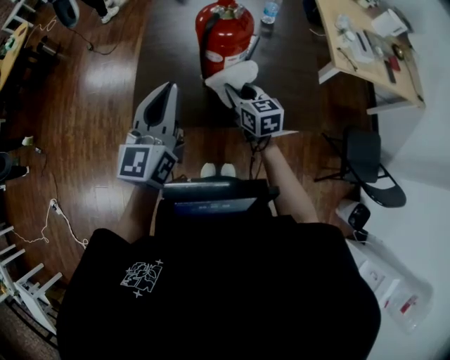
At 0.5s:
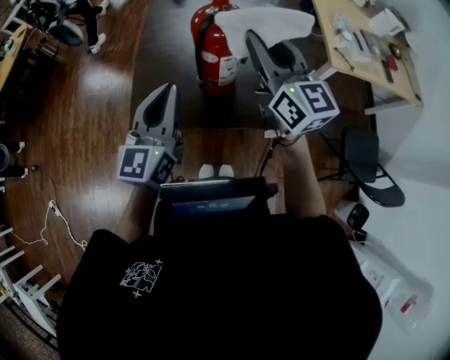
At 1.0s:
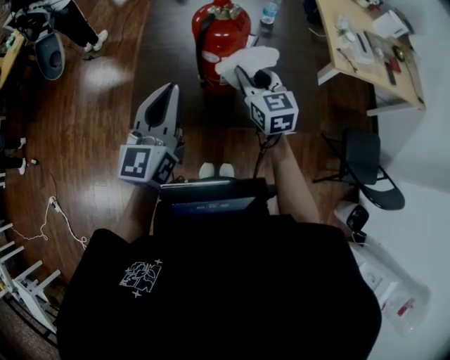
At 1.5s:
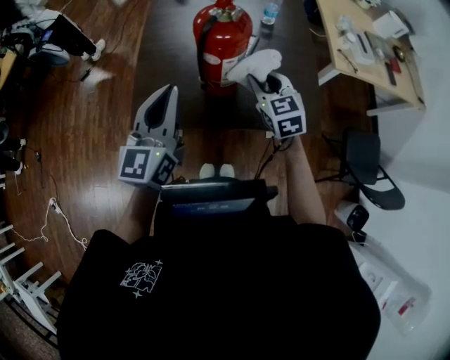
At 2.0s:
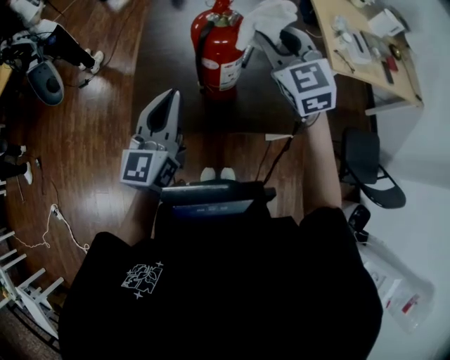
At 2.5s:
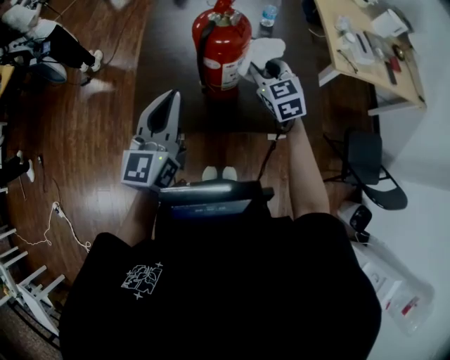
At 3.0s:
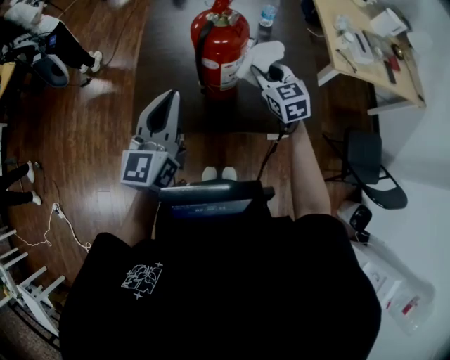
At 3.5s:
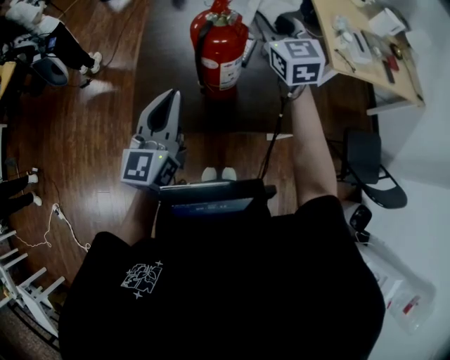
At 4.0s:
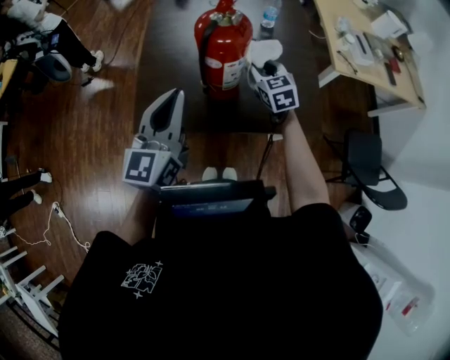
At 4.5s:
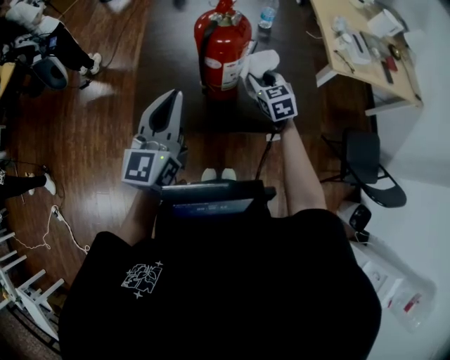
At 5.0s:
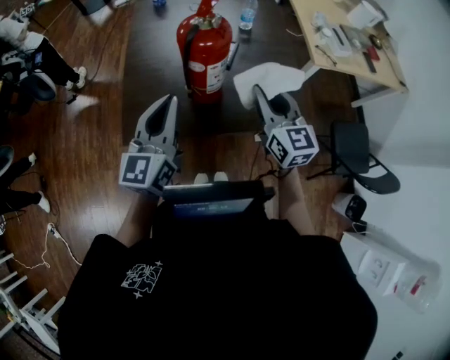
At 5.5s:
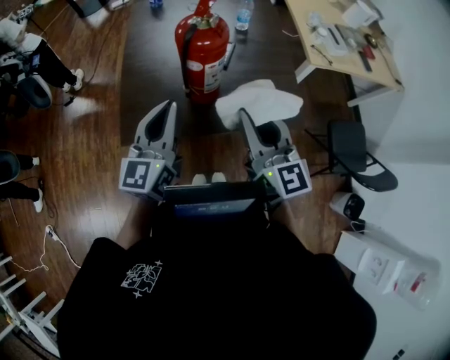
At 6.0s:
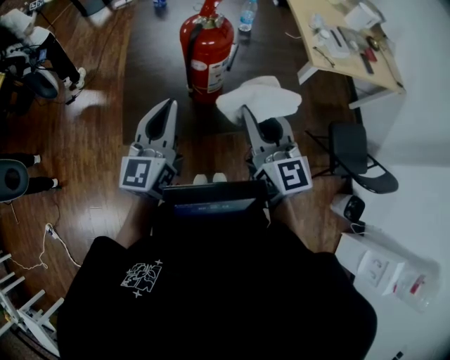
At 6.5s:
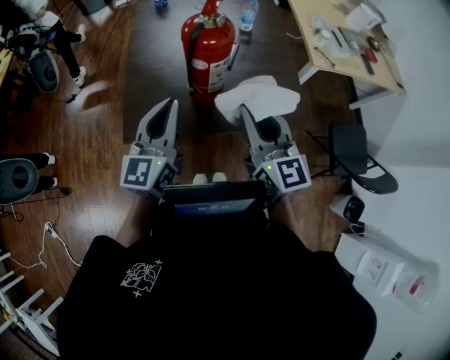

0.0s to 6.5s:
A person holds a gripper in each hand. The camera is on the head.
0.0s to 2.0s: The right gripper goes up and down, some 25 cm each way, reversing 2 times, and changes its angle by approximately 40 degrees.
2.0s to 4.5s: The right gripper swings up and down, roughly 25 cm each way, with 2 reversals, and changes its angle by about 30 degrees.
4.5s to 6.5s: The right gripper travels upward and backward by about 30 cm, and tilts its fingers approximately 30 degrees upward.

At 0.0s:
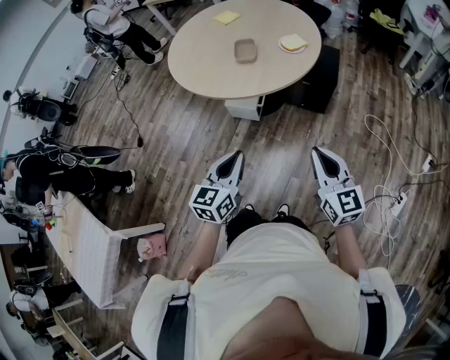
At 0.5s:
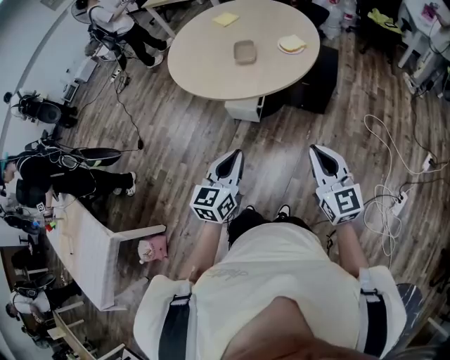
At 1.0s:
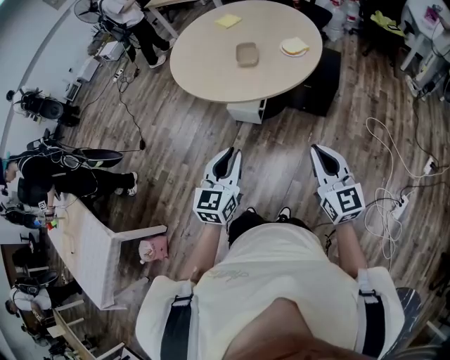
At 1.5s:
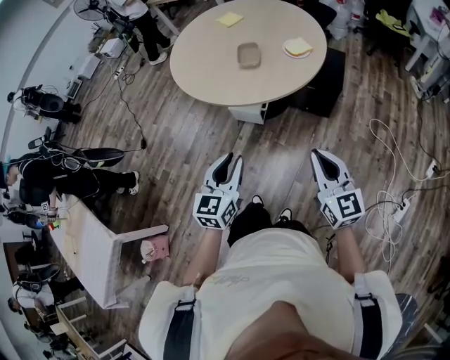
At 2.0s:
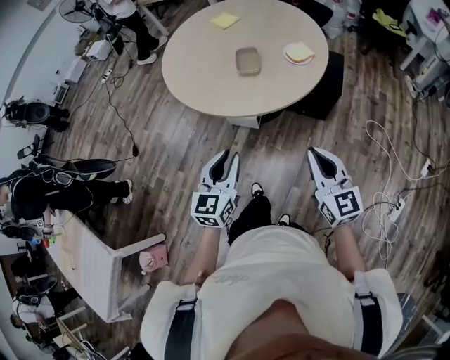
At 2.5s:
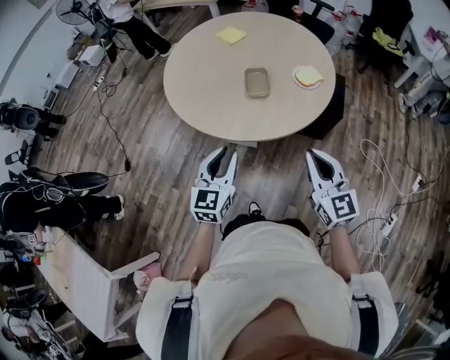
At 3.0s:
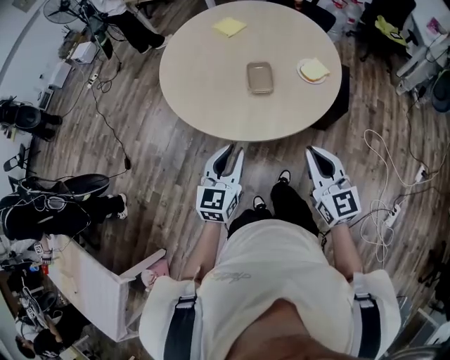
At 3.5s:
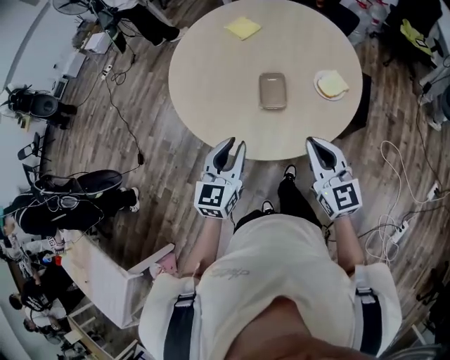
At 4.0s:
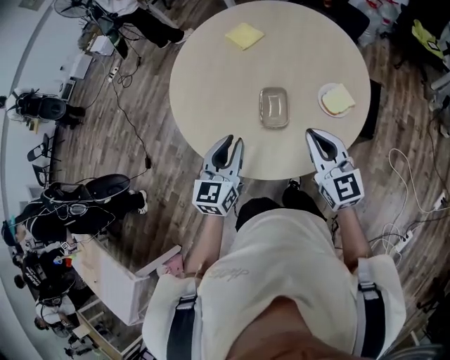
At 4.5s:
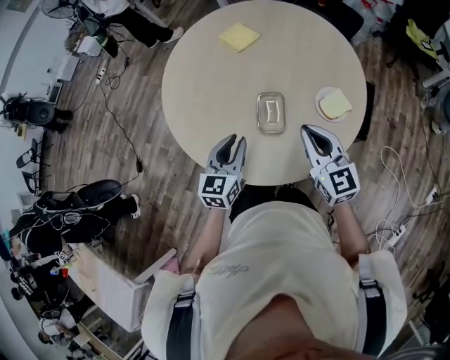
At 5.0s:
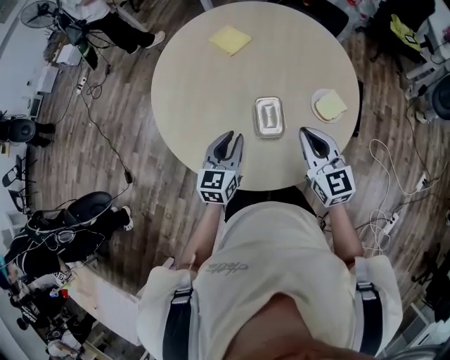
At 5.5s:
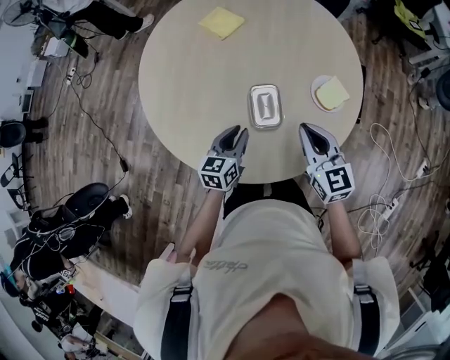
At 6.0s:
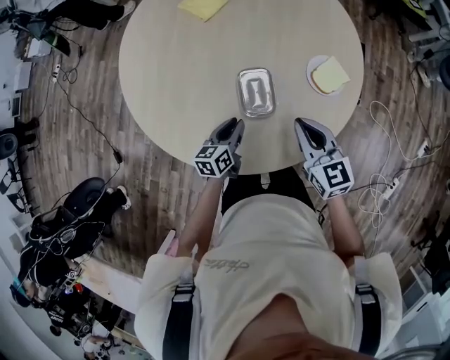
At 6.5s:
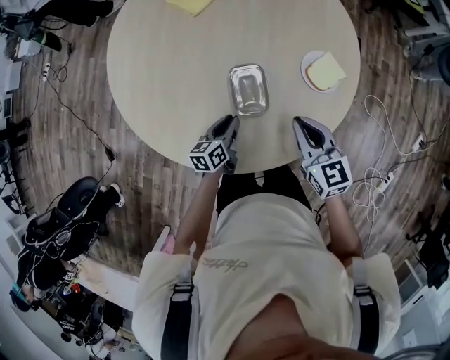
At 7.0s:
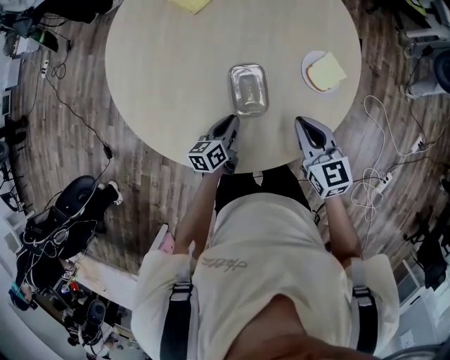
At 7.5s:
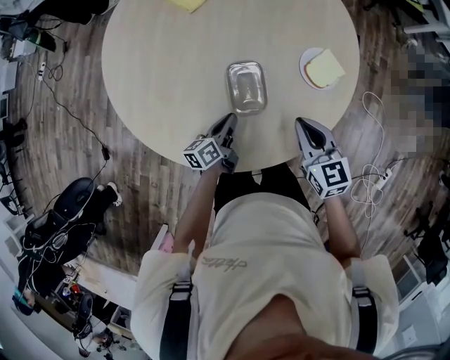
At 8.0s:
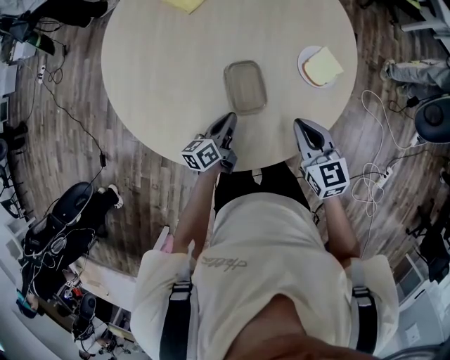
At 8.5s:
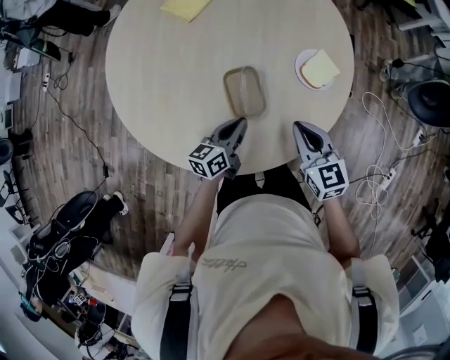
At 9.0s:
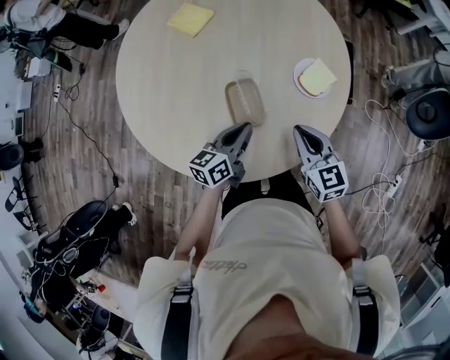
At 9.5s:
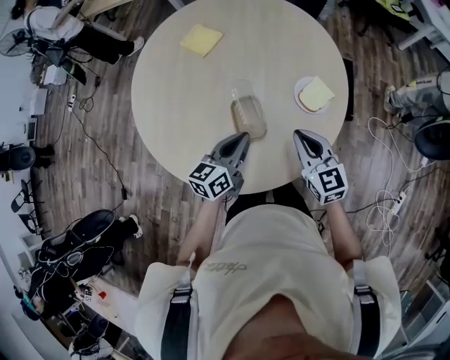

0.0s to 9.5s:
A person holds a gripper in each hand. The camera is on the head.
0.0s to 2.0s: The two grippers go roughly 10 cm forward.
2.0s to 4.0s: Both grippers move forward, about 35 cm.
4.0s to 5.5s: The right gripper shifts roughly 10 cm forward and downward. Meanwhile the left gripper is displaced downward and forward by about 20 cm, and rotates approximately 20 degrees.
5.5s to 7.5s: The right gripper moves downward, about 10 cm. Meanwhile the left gripper shifts about 10 cm downward, and rotates roughly 30 degrees.
7.5s to 9.5s: The right gripper goes approximately 5 cm upward; the left gripper moves upward, about 20 cm, and turns by about 30 degrees.

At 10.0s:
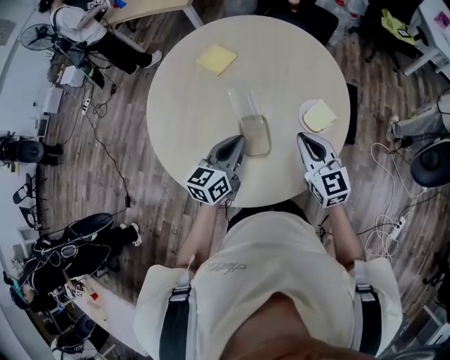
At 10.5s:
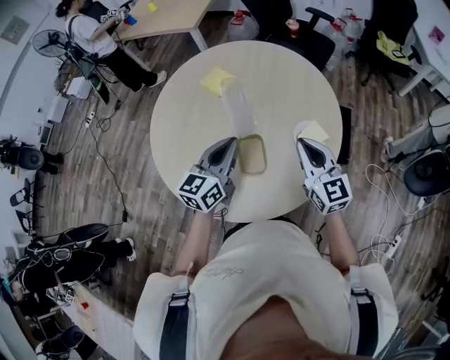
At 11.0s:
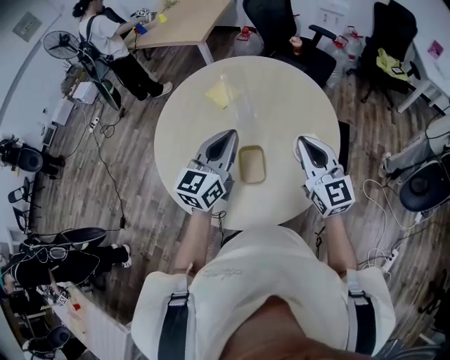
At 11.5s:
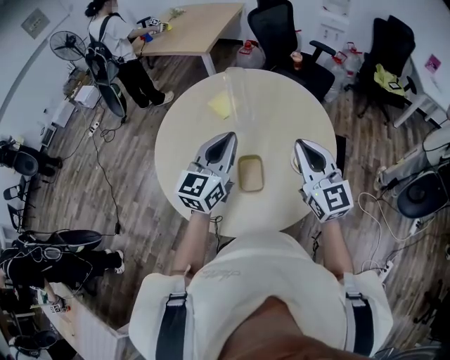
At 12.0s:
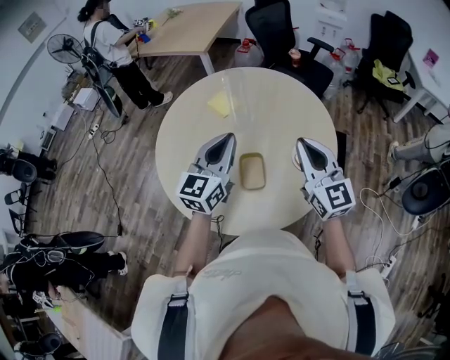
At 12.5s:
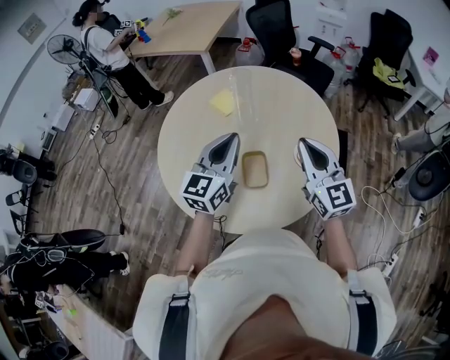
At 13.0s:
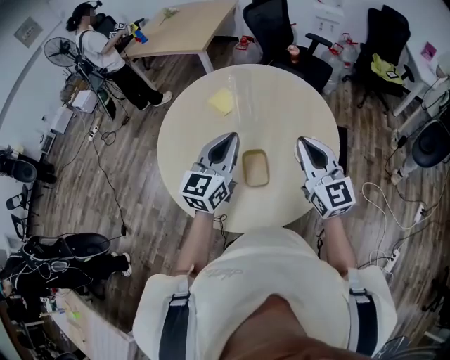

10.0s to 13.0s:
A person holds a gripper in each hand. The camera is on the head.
10.0s to 11.5s: Both grippers move upward, roughly 15 cm. The left gripper changes its angle by some 30 degrees.
11.5s to 13.0s: The grippers make only small movements.

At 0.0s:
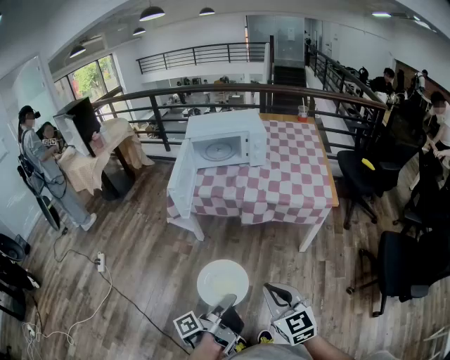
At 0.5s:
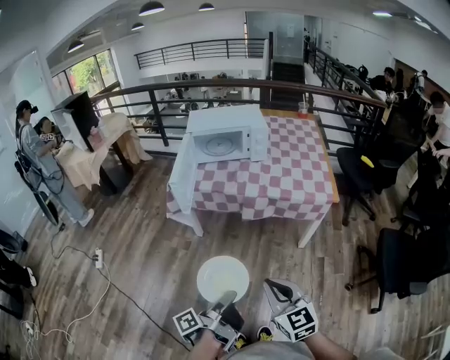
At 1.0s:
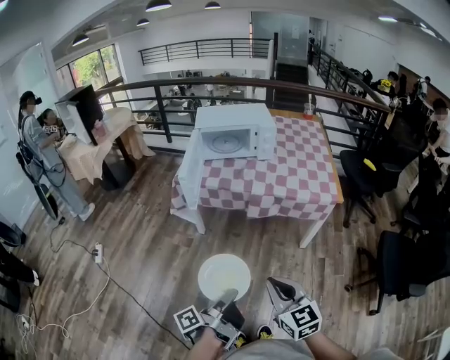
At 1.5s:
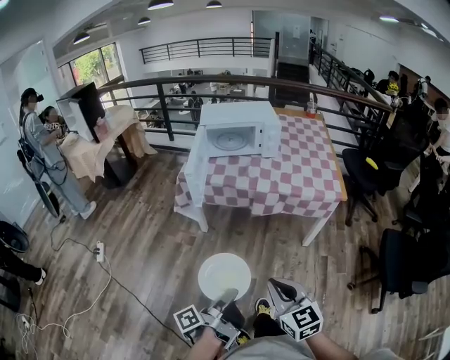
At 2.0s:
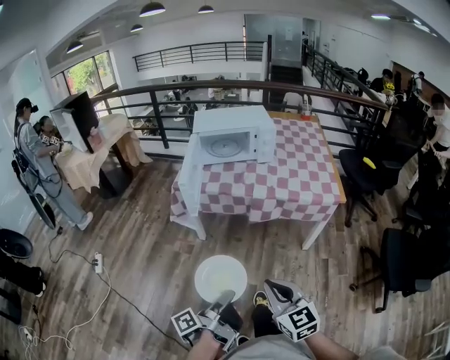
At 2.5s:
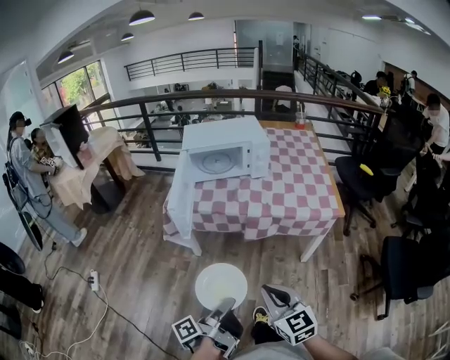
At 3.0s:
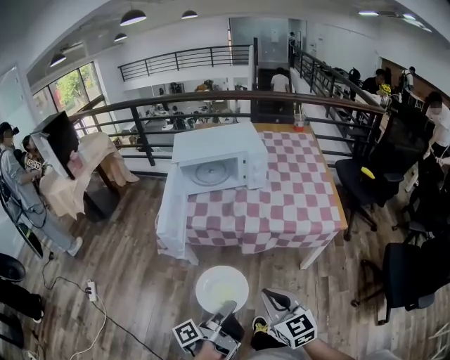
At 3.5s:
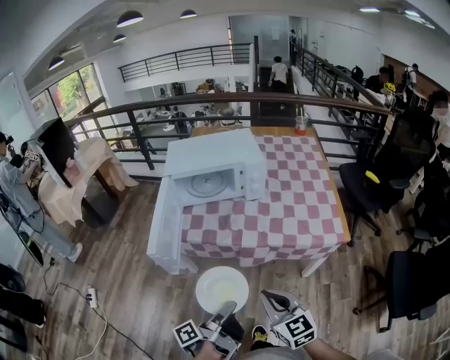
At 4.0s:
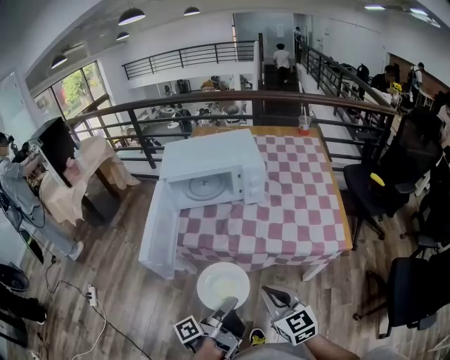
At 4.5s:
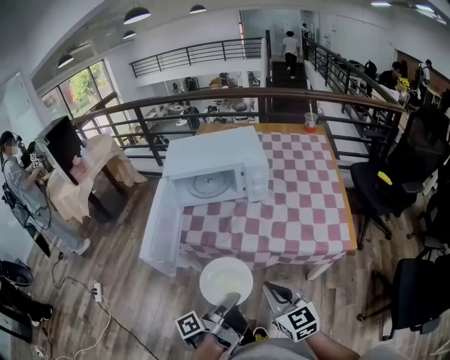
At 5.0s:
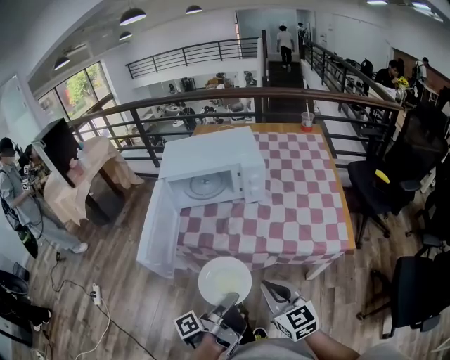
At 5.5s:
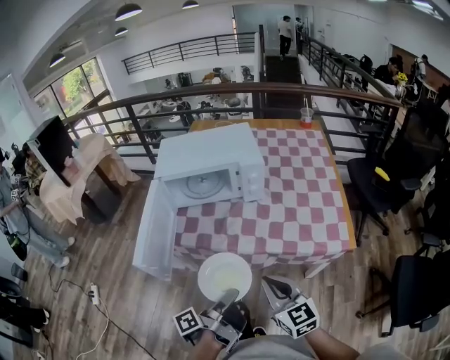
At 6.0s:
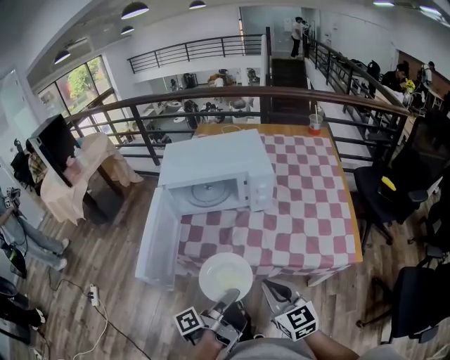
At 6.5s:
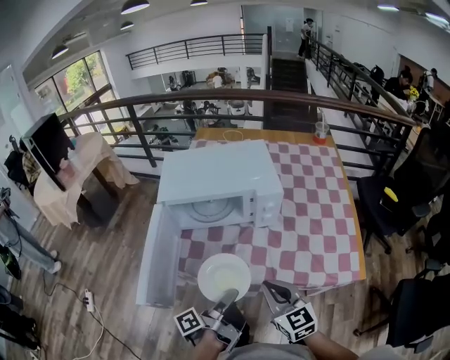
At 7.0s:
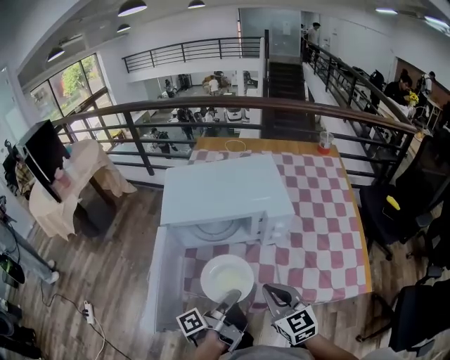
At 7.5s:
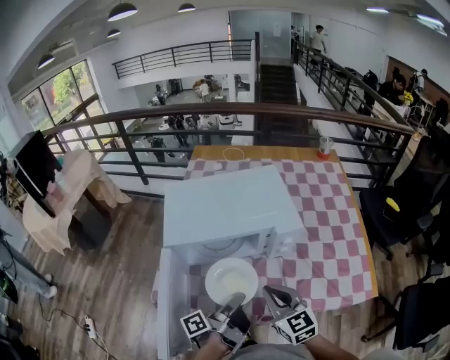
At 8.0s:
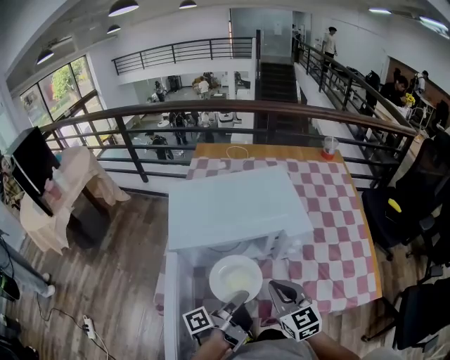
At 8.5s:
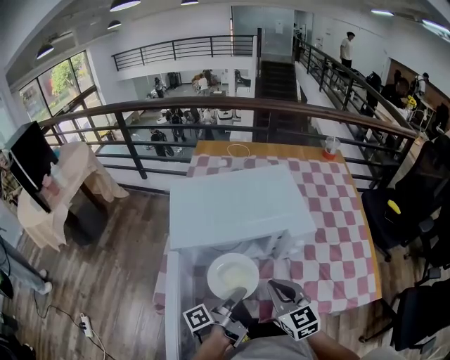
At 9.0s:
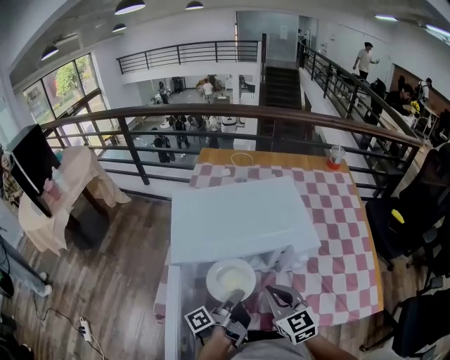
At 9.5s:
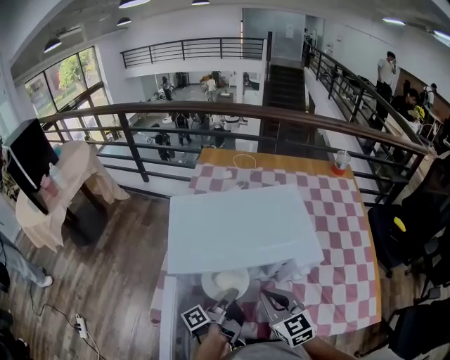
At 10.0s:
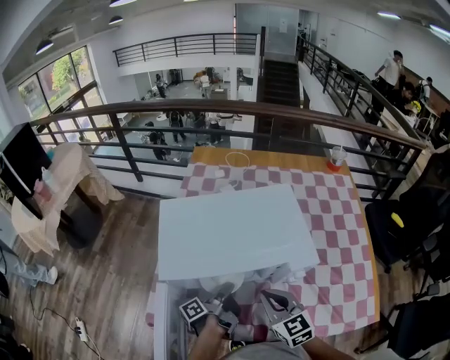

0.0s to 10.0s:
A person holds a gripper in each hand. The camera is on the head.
0.0s to 2.0s: The right gripper moves about 5 cm.
2.0s to 4.0s: The right gripper moves roughly 30 cm.
4.0s to 6.0s: The right gripper changes place by approximately 10 cm.
6.0s to 8.0s: The right gripper moves roughly 25 cm.
8.0s to 10.0s: The right gripper changes place by roughly 10 cm.
